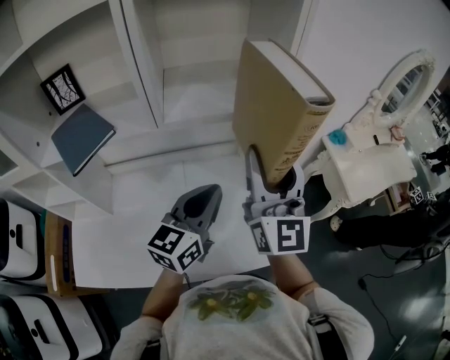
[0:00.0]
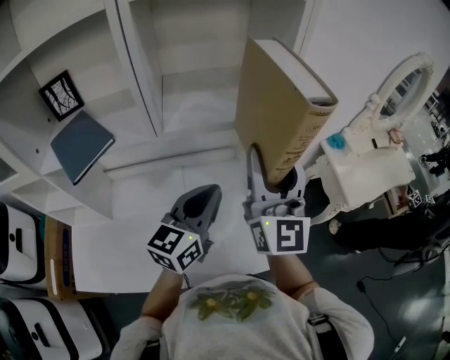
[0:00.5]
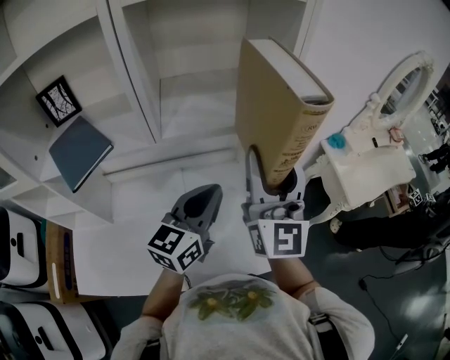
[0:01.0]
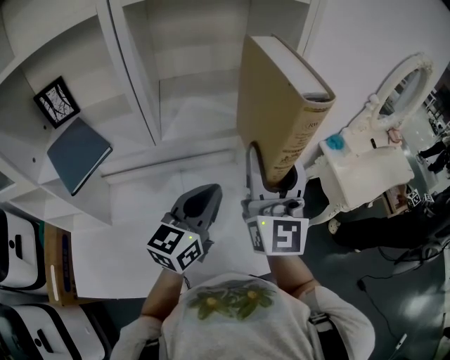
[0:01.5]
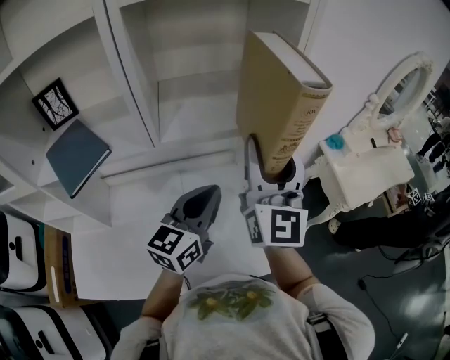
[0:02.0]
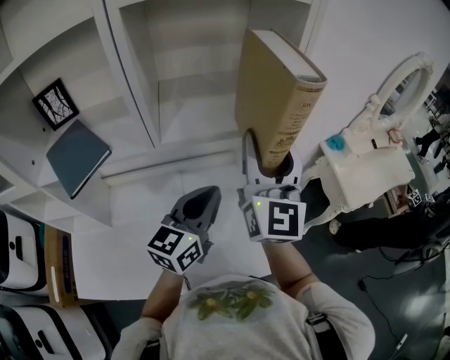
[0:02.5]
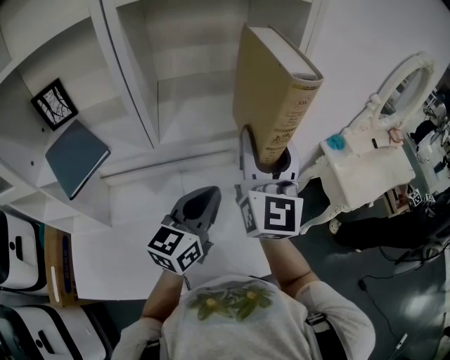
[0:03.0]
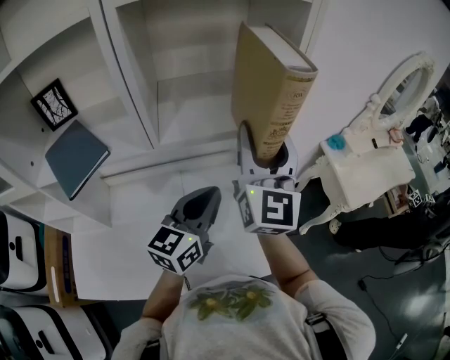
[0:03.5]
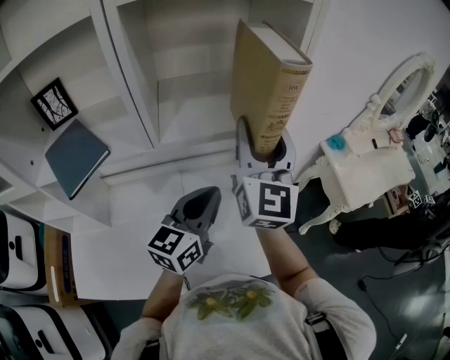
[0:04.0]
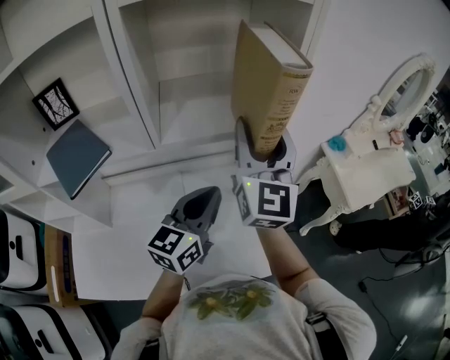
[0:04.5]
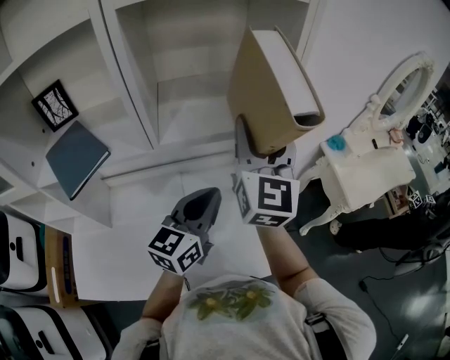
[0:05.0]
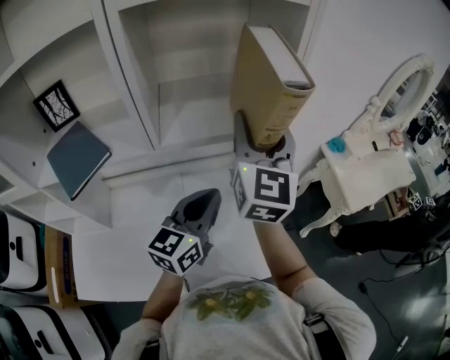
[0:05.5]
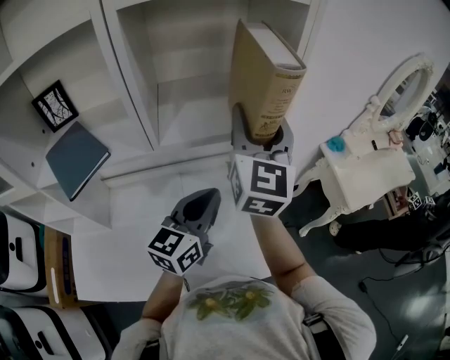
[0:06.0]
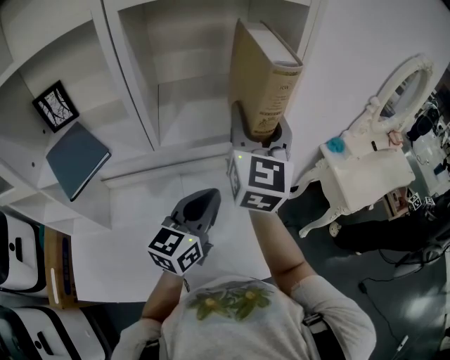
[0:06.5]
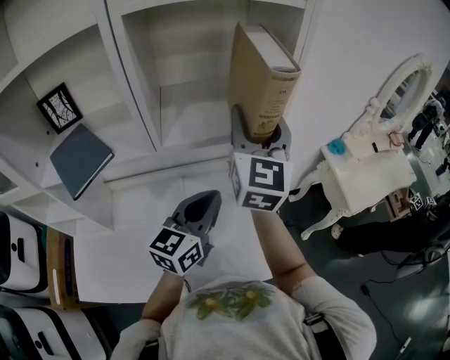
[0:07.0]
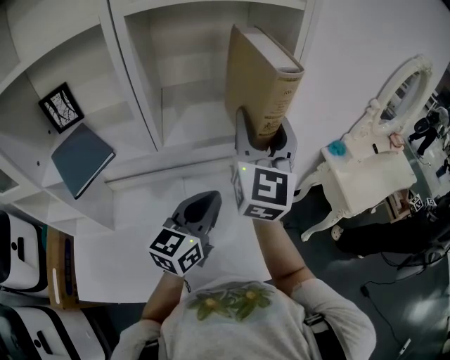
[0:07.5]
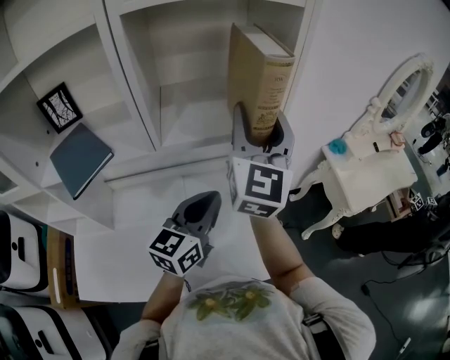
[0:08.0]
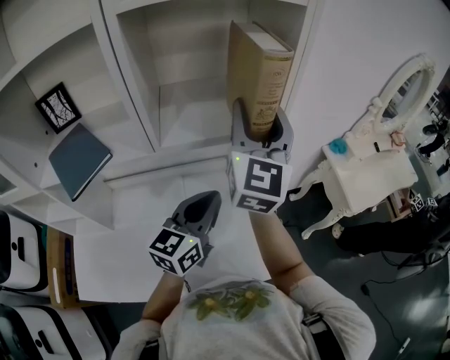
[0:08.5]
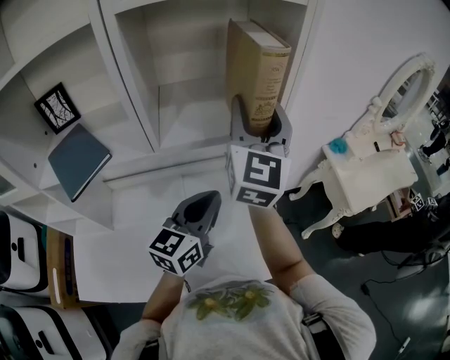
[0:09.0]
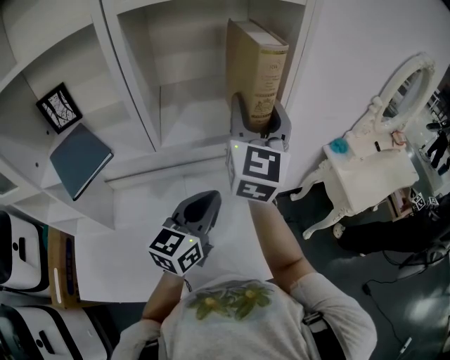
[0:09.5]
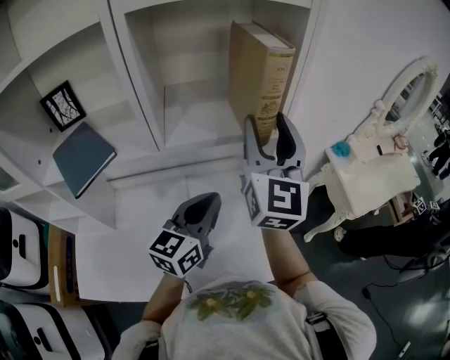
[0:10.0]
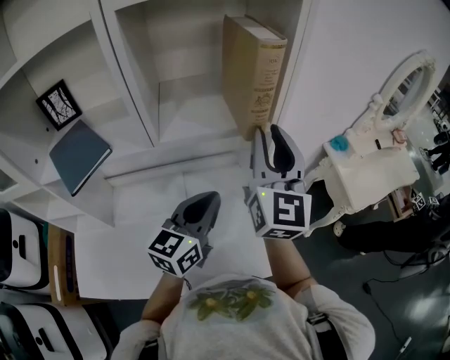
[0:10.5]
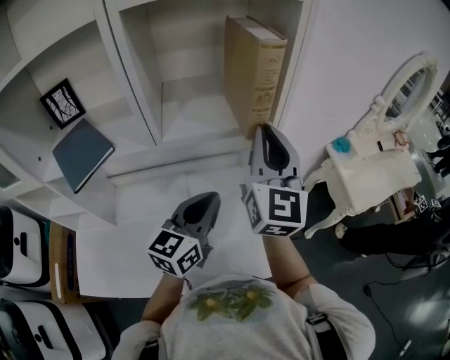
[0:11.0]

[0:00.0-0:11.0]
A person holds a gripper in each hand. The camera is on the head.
0.0 to 2.0 s: The right gripper travels forward by some 5 cm.
2.0 to 3.5 s: The grippers move only a little.
3.5 to 9.0 s: The grippers make only small movements.
9.0 to 11.0 s: The right gripper changes place by approximately 5 cm, and closes up.

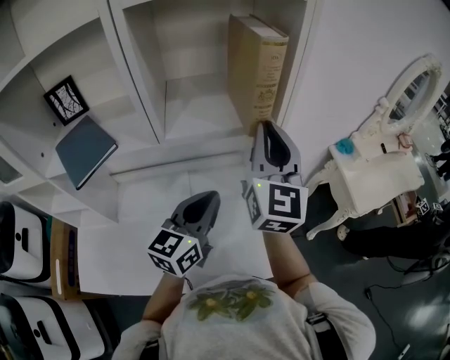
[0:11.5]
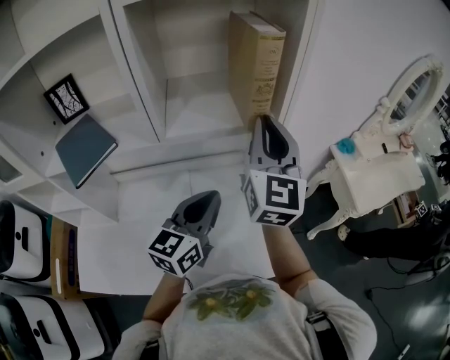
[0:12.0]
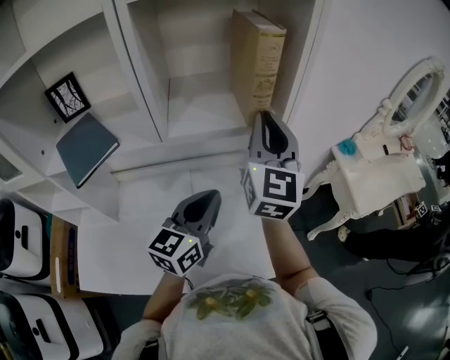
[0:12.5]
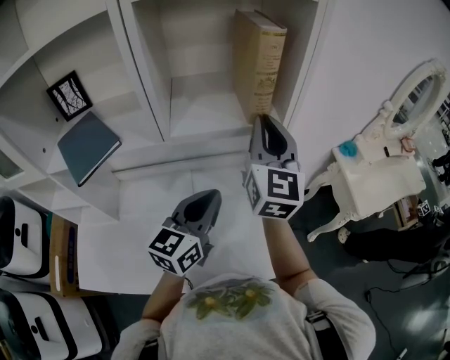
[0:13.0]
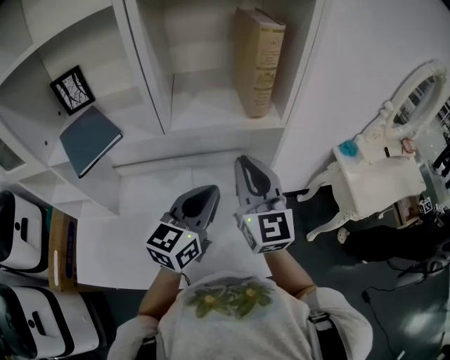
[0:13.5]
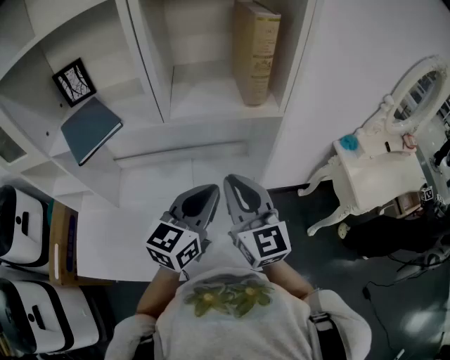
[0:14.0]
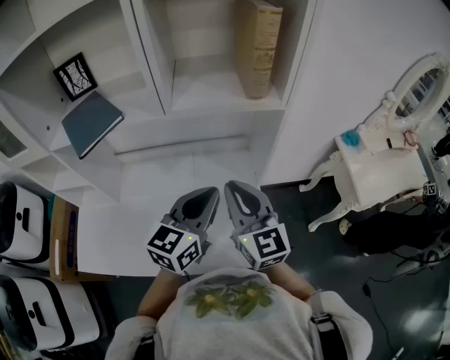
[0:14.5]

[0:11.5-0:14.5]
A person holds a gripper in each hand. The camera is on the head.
11.5 to 13.0 s: There are only small adjustments of the grippers.
13.0 to 14.5 s: The right gripper moves backward and downward, some 20 cm, and turns by about 30 degrees. The left gripper goes about 5 cm backward.

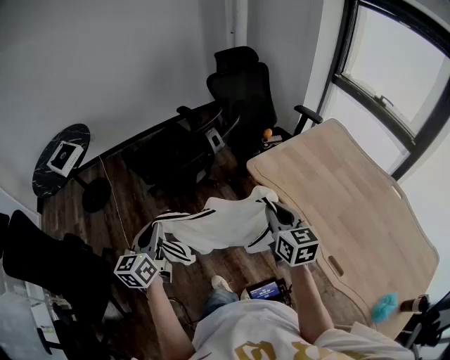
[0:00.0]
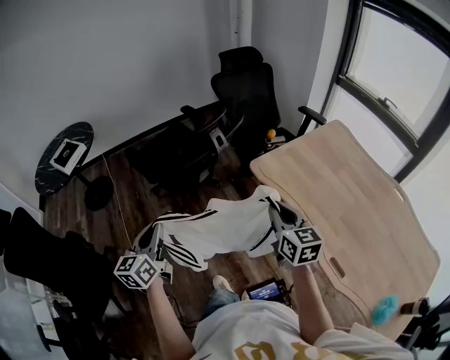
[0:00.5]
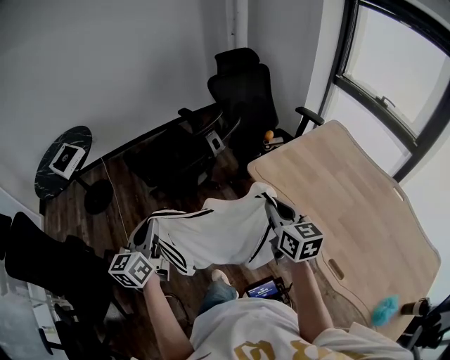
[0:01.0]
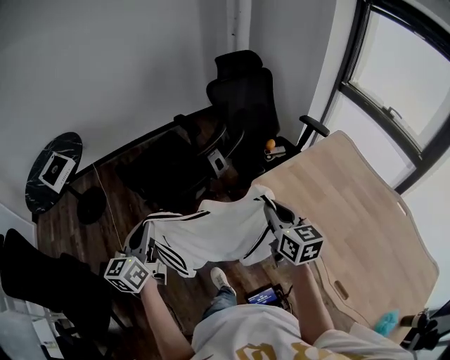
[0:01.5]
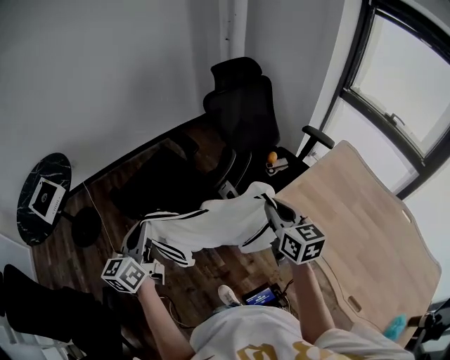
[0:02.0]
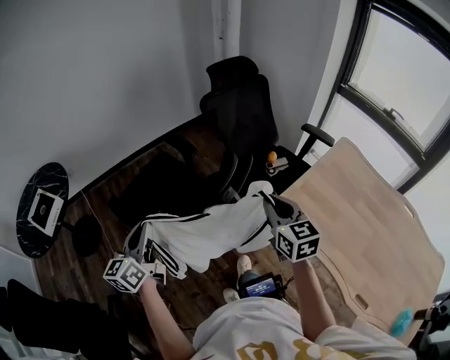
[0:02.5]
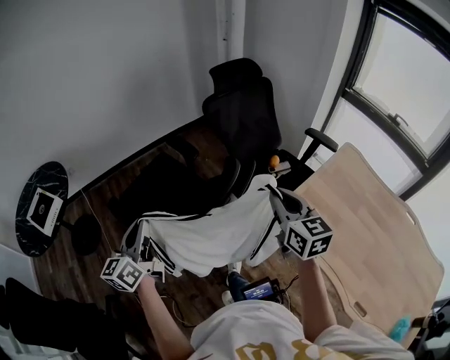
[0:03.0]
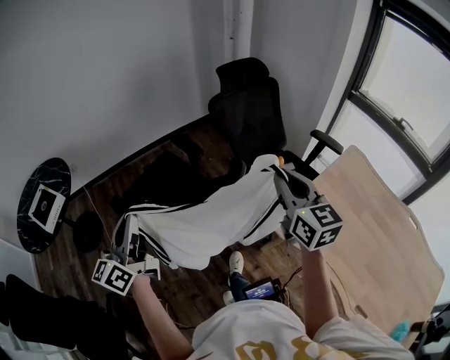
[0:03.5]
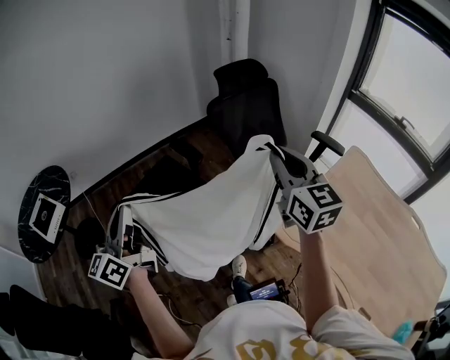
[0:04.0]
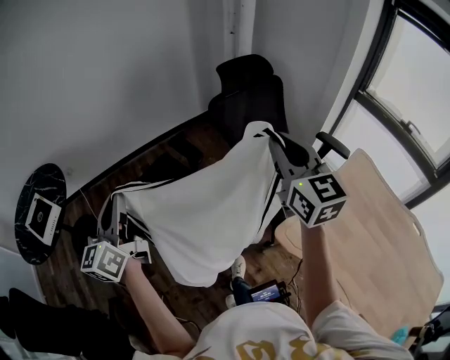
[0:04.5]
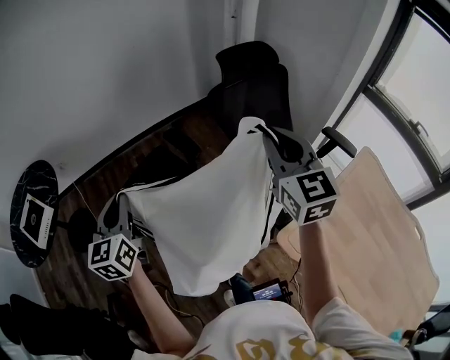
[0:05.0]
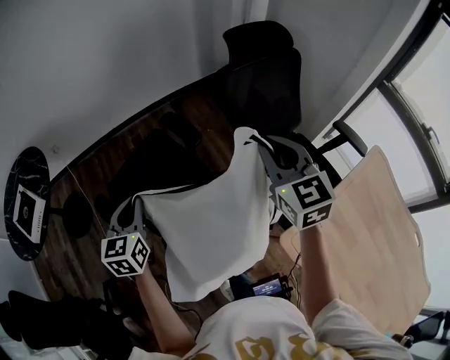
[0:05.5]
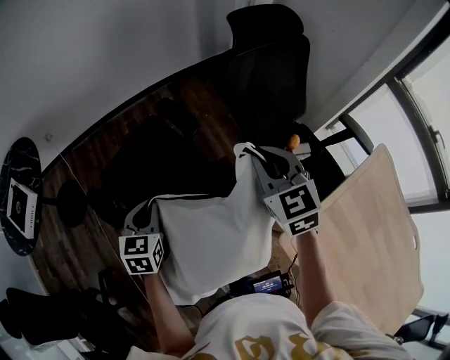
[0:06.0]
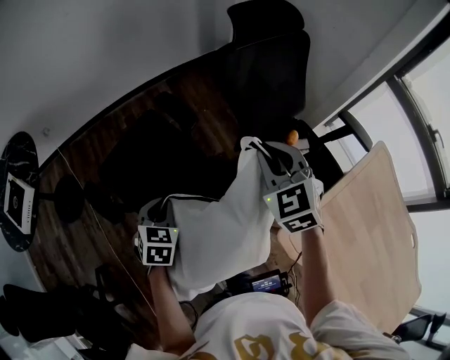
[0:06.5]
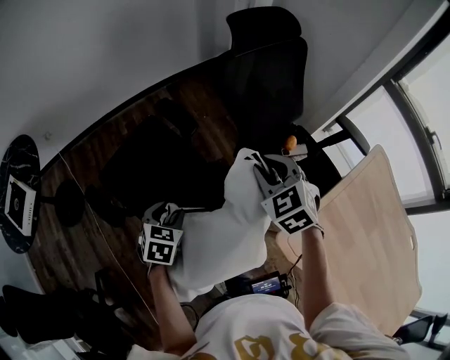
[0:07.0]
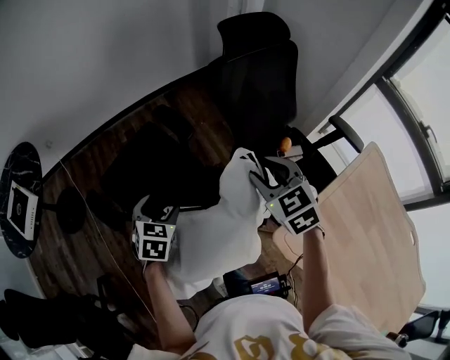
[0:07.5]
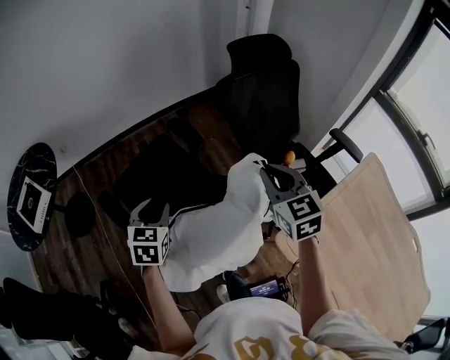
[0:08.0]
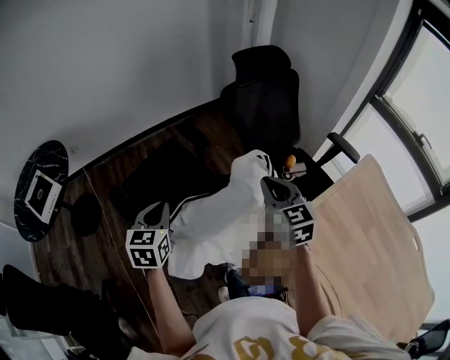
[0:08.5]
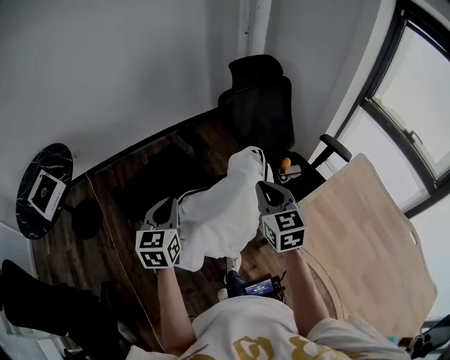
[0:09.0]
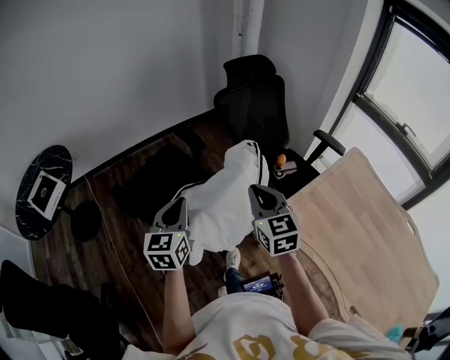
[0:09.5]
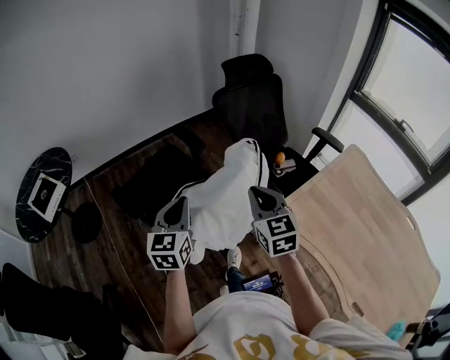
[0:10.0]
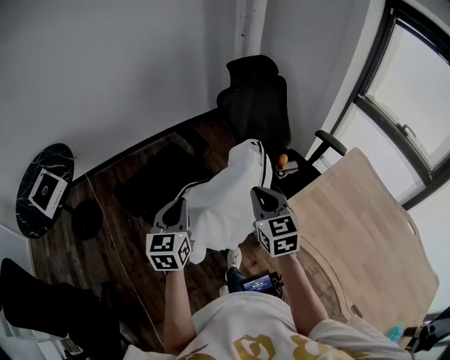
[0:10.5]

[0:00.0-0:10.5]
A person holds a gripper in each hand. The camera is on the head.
0.0 to 2.0 s: Both grippers move forward, about 30 cm.
2.0 to 4.0 s: The grippers both shift forward and upward by approximately 20 cm.
4.0 to 6.5 s: The right gripper shifts approximately 30 cm forward and downward, and turns by about 40 degrees. The left gripper moves downward and forward, some 35 cm, and tilts its fingers some 60 degrees downward.
6.5 to 8.5 s: The right gripper goes some 15 cm backward, swivels roughly 30 degrees, and opens and closes again, while the left gripper moves upward and backward, about 20 cm, swivels roughly 20 degrees, and opens, then closes again.
8.5 to 10.5 s: Both grippers move backward, approximately 10 cm.

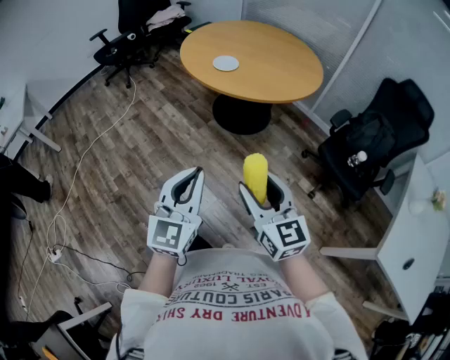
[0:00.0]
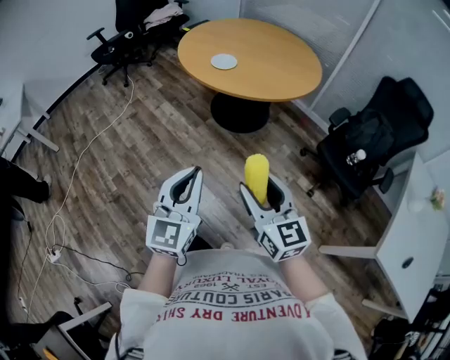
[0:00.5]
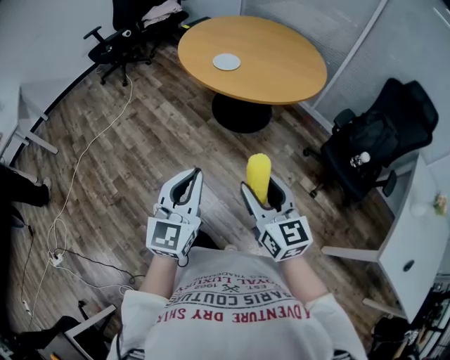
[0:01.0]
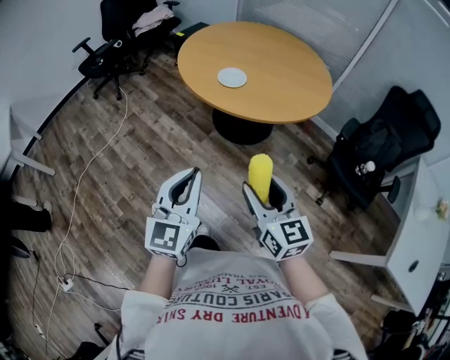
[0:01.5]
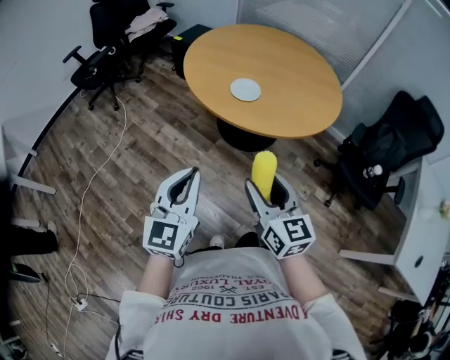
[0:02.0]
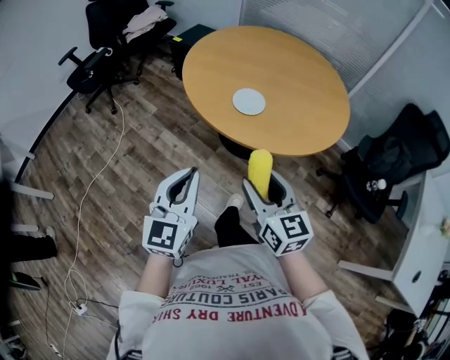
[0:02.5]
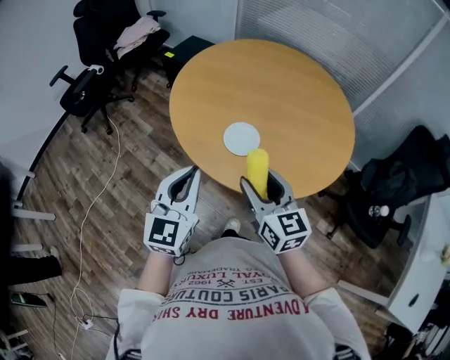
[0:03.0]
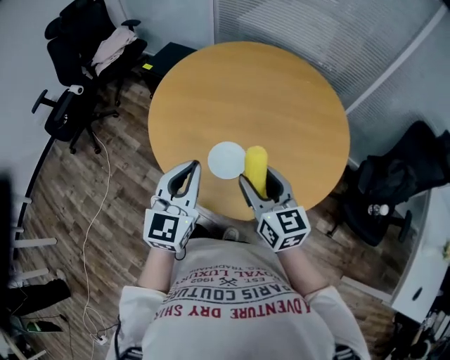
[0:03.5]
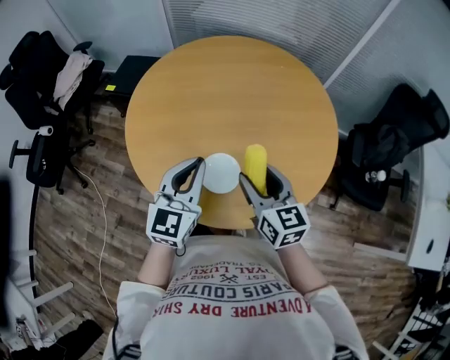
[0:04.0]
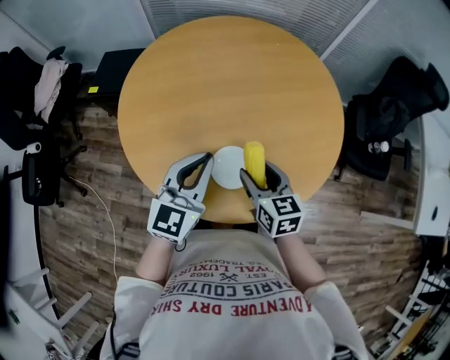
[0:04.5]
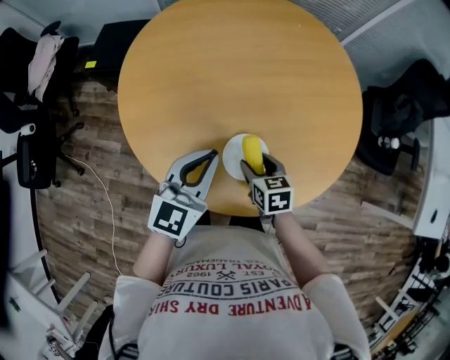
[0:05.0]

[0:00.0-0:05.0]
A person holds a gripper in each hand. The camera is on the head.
0.0 to 2.5 s: Both grippers are carried forward and to the left, approximately 40 cm.
2.5 to 5.0 s: The left gripper changes place by about 50 cm, and turns by roughly 40 degrees, while the right gripper moves some 50 cm, and tips its fingers downward by approximately 40 degrees.
